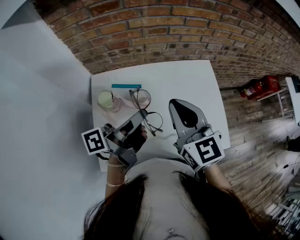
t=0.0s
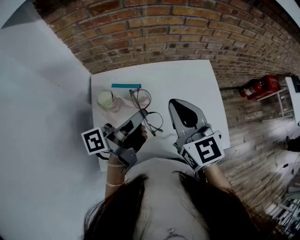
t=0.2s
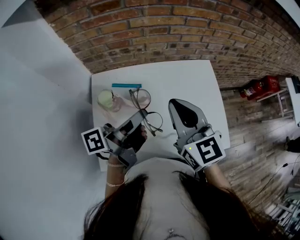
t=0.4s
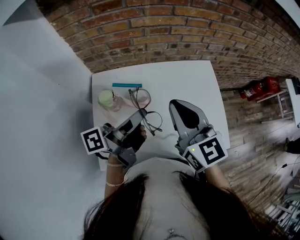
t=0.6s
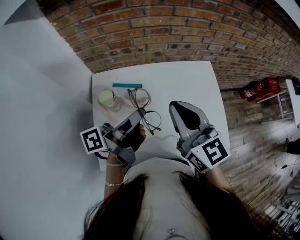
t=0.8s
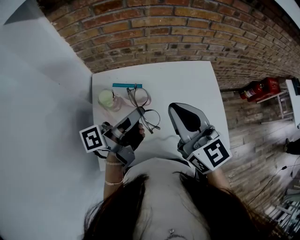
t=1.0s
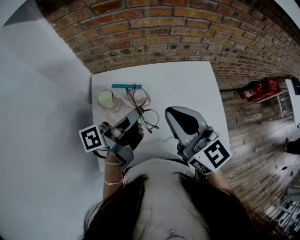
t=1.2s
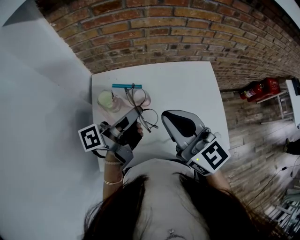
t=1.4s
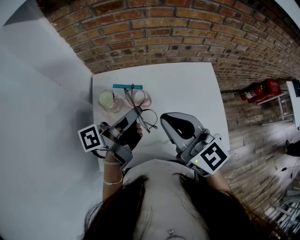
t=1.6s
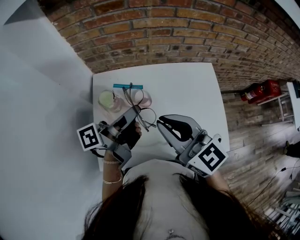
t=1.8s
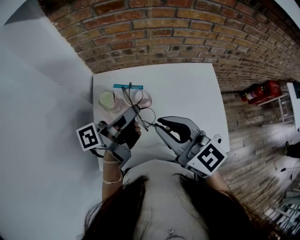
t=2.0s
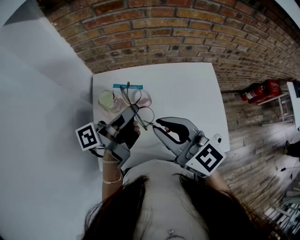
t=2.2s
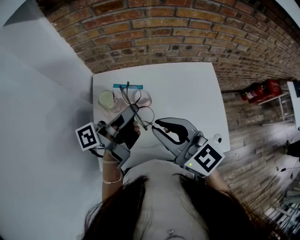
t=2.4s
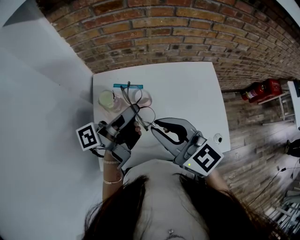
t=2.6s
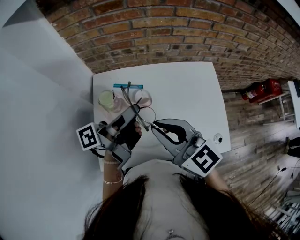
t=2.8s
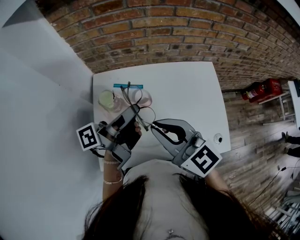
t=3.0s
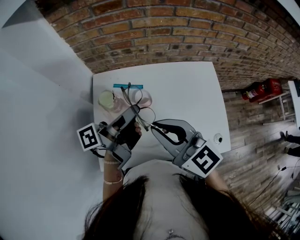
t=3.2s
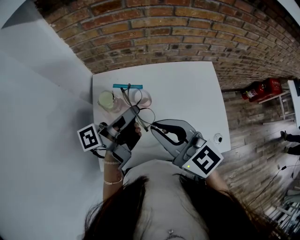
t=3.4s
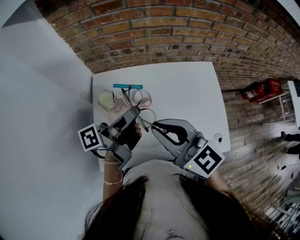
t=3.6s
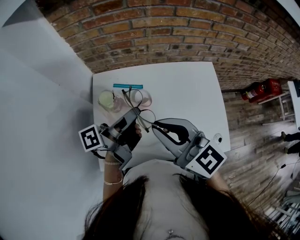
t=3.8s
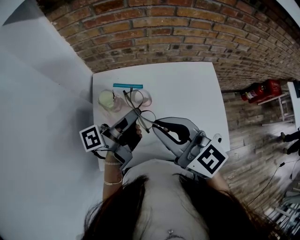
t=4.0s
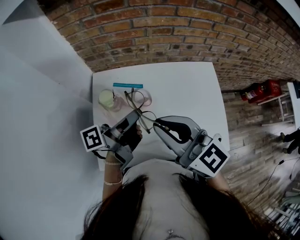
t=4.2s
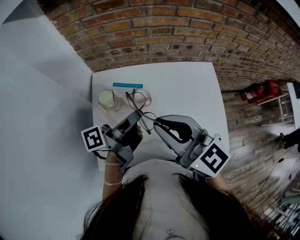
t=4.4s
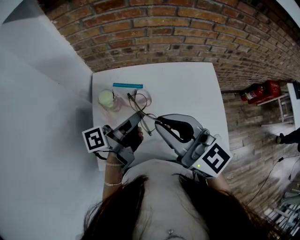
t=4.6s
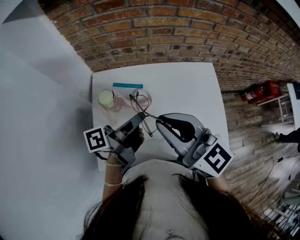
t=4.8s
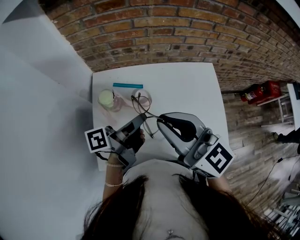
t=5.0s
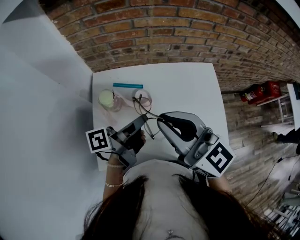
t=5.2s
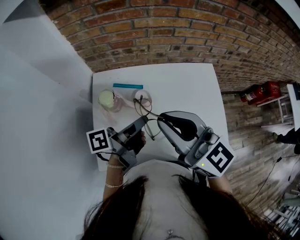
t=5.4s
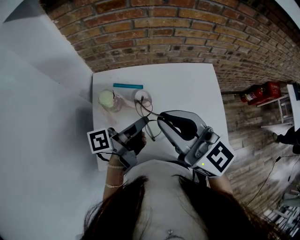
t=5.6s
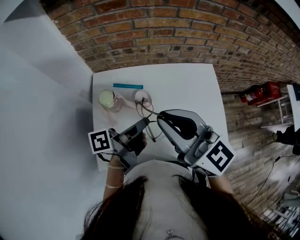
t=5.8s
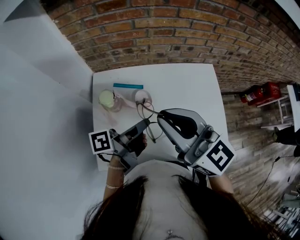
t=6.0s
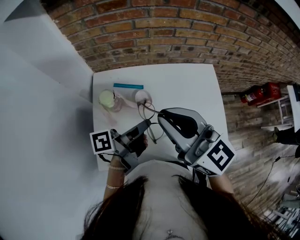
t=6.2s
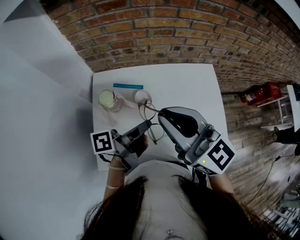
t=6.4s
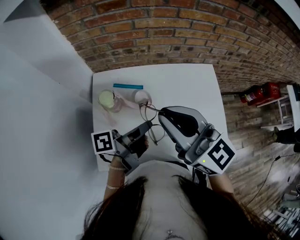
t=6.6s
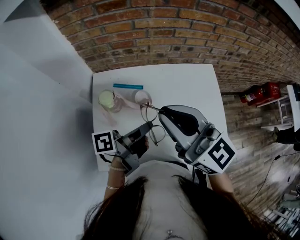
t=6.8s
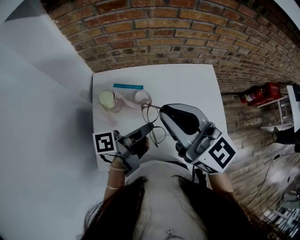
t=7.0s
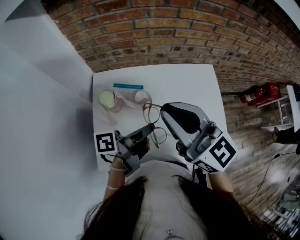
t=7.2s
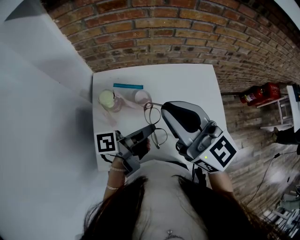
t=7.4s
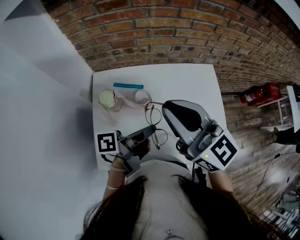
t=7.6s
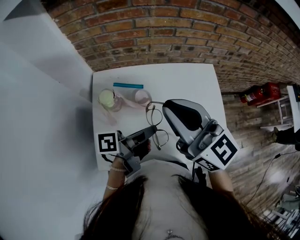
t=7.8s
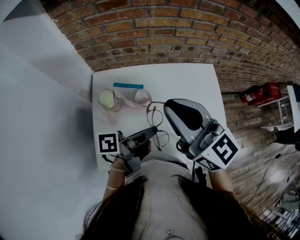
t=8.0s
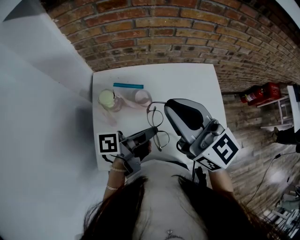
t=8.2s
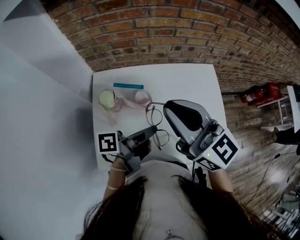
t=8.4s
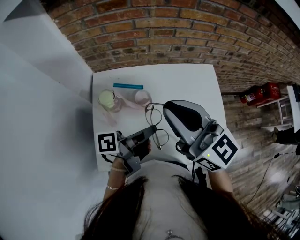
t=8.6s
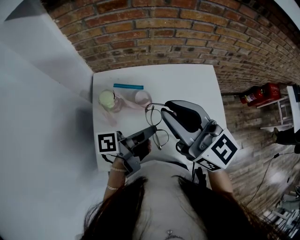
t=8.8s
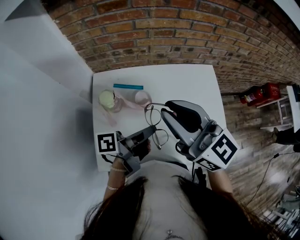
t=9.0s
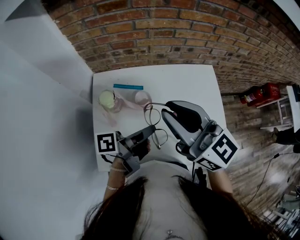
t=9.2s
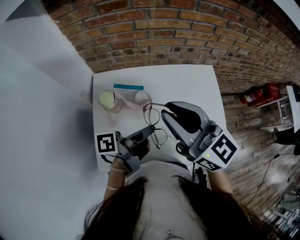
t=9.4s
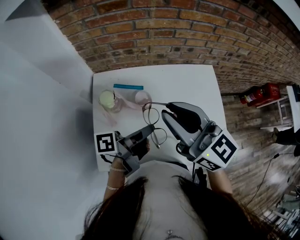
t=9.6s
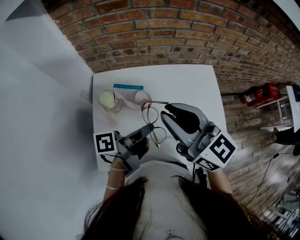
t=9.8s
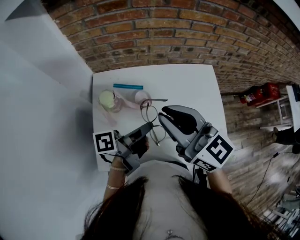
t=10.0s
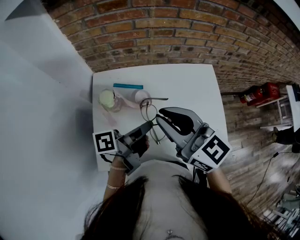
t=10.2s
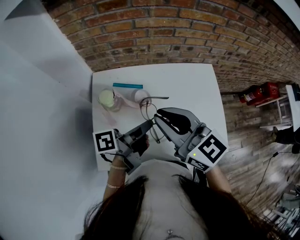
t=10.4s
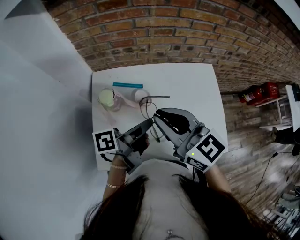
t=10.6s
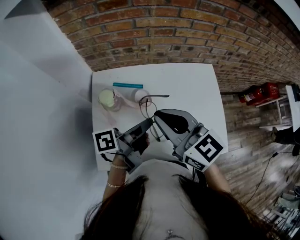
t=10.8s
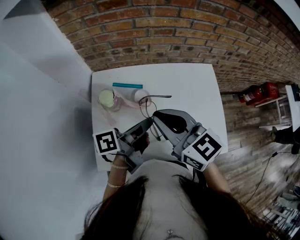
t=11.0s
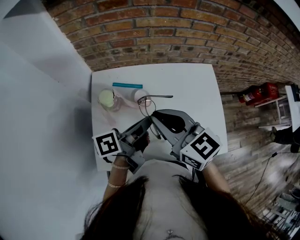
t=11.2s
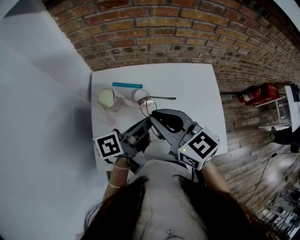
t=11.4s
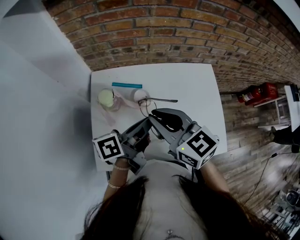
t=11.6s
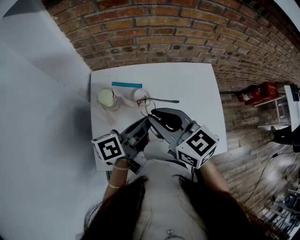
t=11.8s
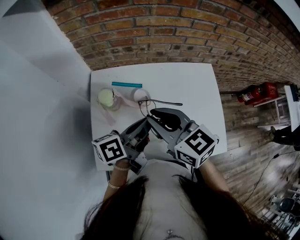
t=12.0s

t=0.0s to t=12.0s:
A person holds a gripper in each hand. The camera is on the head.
t=0.0s to t=1.6s: The right gripper ends up approximately 5 cm from where it was, and changes its angle by approximately 20 degrees.
t=9.0s to t=10.4s: The right gripper moves about 5 cm.
t=10.4s to t=12.0s: The right gripper shifts approximately 5 cm downward.

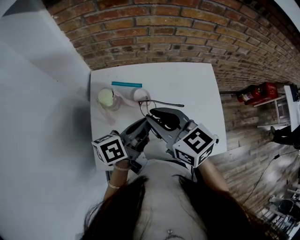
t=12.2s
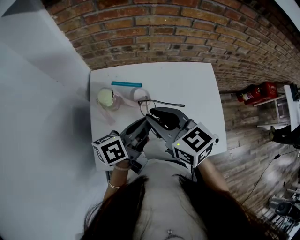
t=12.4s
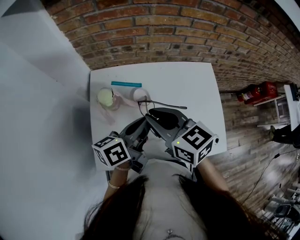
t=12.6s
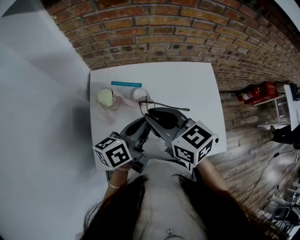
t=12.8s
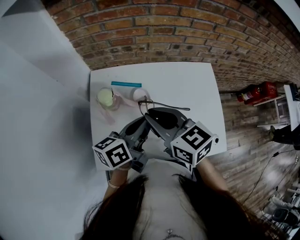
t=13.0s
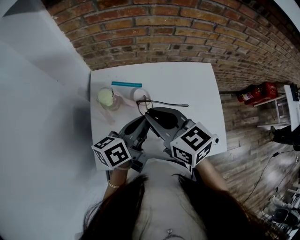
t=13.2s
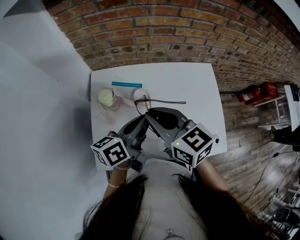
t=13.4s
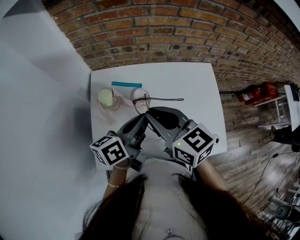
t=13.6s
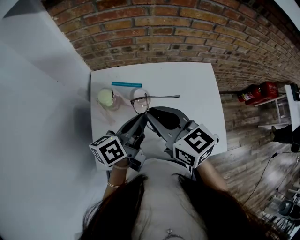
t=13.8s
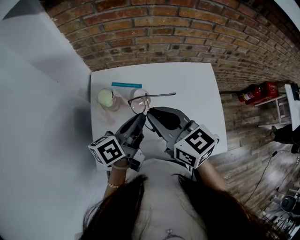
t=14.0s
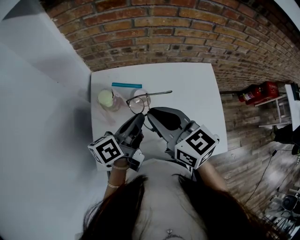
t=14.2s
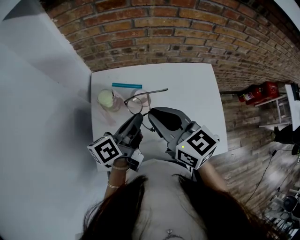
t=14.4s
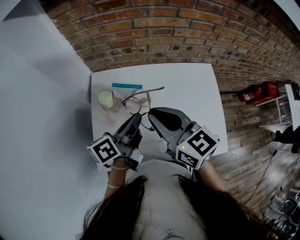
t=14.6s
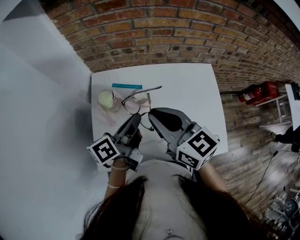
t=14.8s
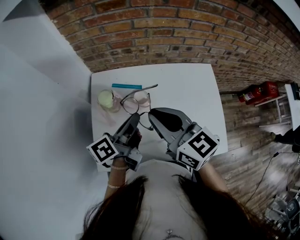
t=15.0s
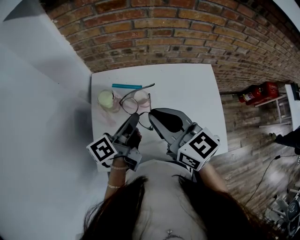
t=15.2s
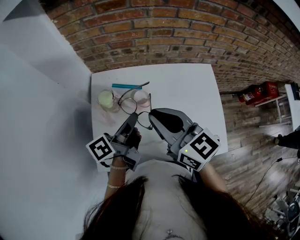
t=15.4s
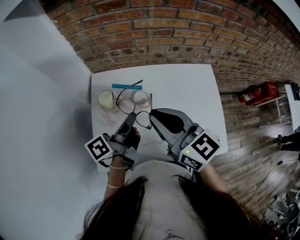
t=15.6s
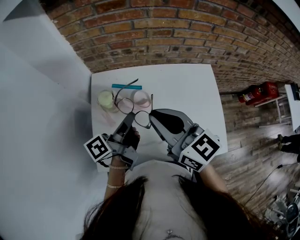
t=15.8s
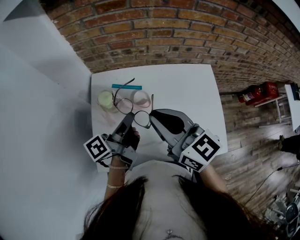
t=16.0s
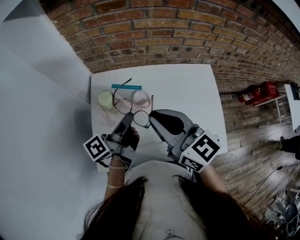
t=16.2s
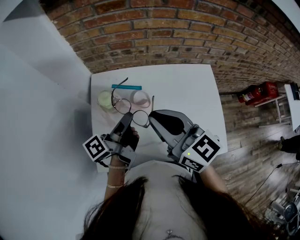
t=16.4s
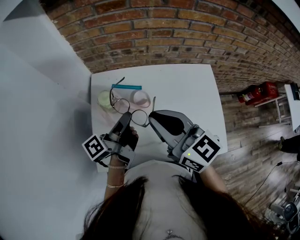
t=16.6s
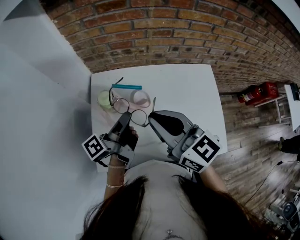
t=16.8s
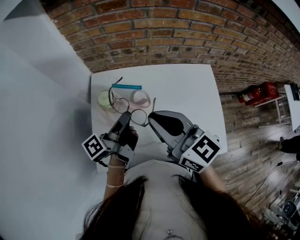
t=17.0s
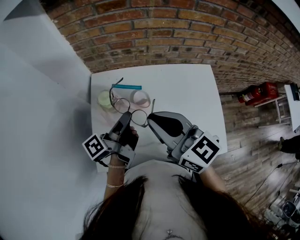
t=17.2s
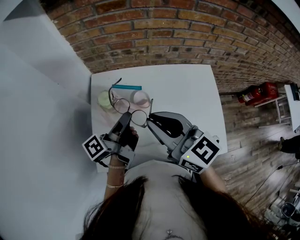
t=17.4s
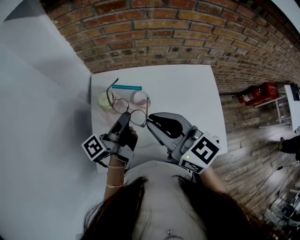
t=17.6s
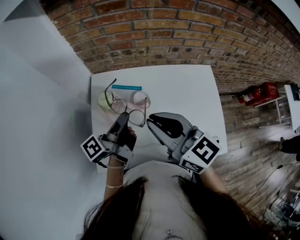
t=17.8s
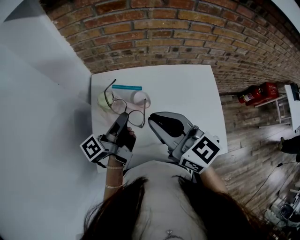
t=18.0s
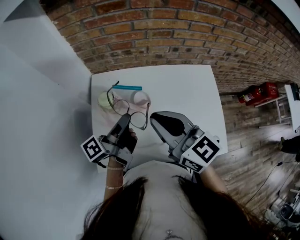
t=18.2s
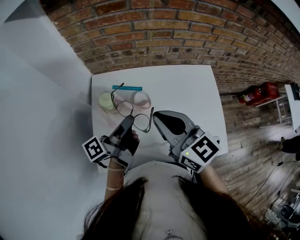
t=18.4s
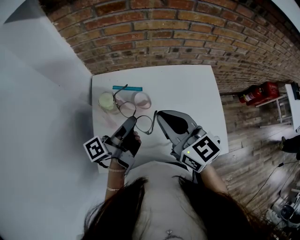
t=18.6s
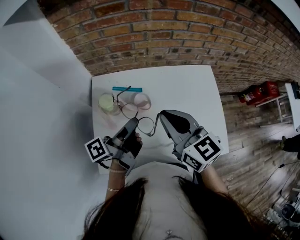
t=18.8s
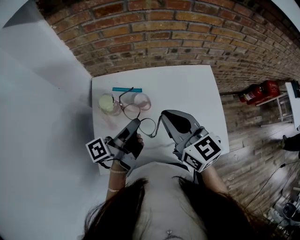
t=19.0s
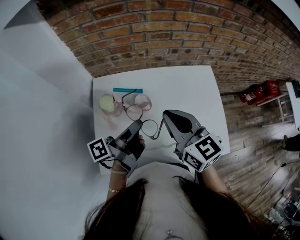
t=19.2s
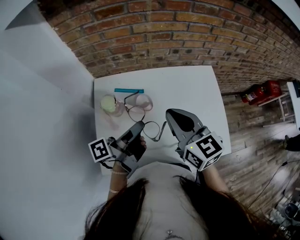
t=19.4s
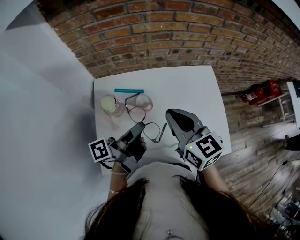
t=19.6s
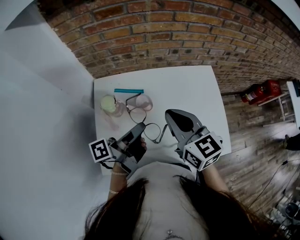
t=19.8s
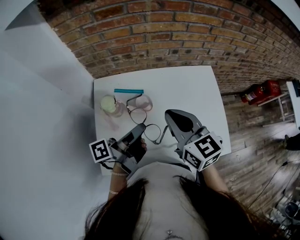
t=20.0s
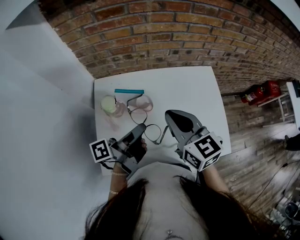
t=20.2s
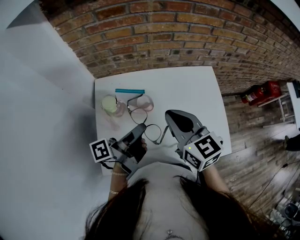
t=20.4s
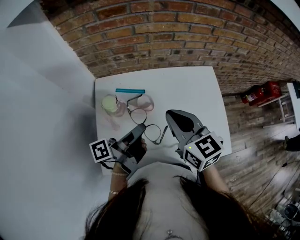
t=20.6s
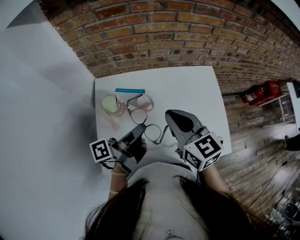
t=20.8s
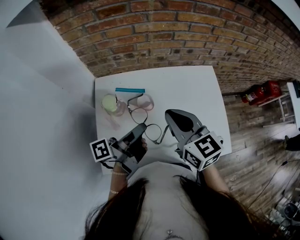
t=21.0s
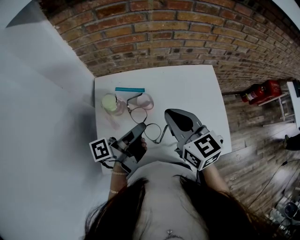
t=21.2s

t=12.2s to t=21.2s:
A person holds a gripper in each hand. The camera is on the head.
t=18.2s to t=19.8s: The right gripper moves approximately 5 cm.

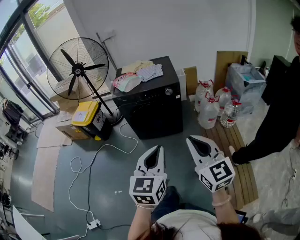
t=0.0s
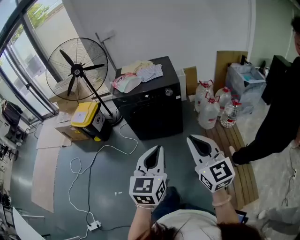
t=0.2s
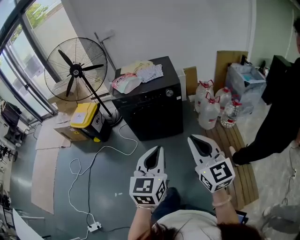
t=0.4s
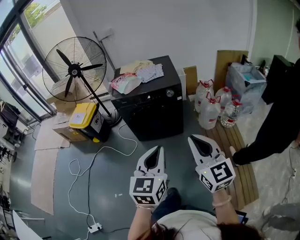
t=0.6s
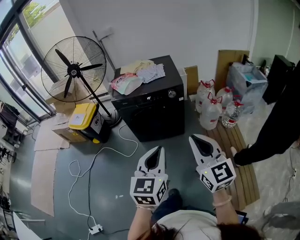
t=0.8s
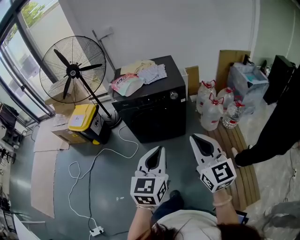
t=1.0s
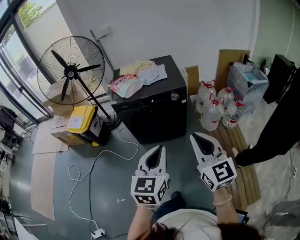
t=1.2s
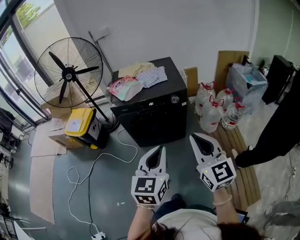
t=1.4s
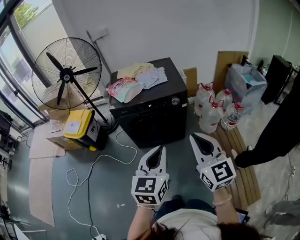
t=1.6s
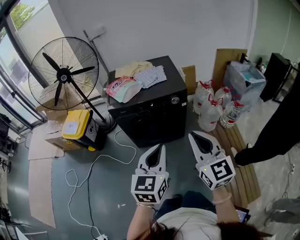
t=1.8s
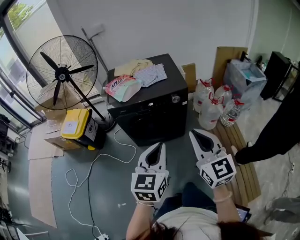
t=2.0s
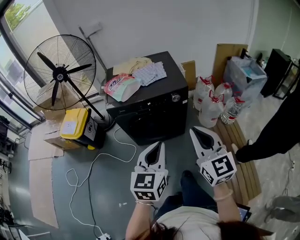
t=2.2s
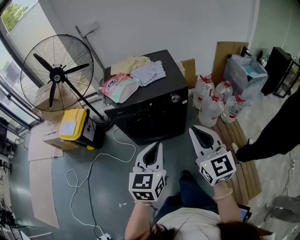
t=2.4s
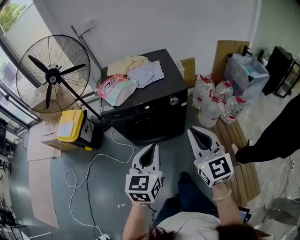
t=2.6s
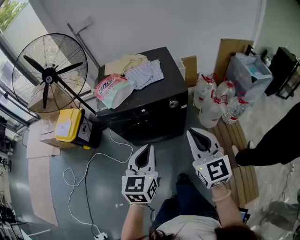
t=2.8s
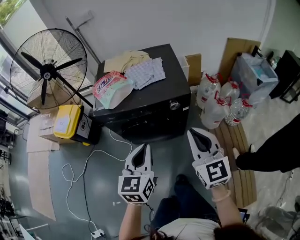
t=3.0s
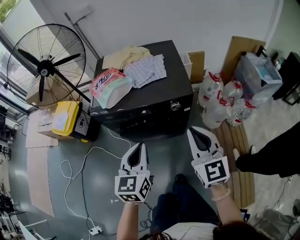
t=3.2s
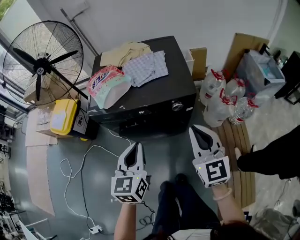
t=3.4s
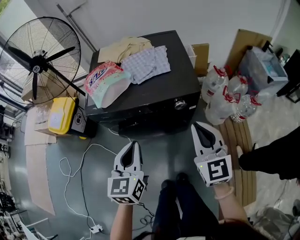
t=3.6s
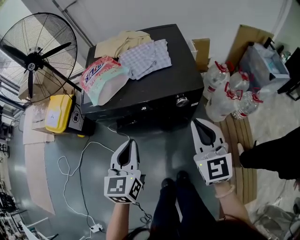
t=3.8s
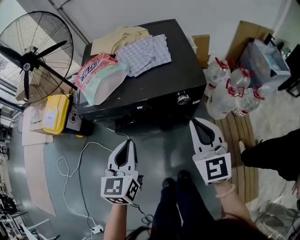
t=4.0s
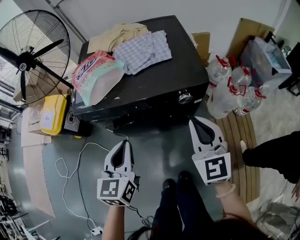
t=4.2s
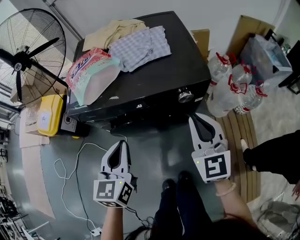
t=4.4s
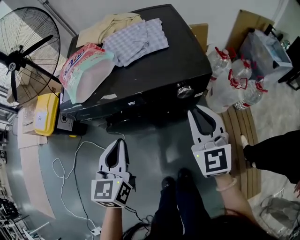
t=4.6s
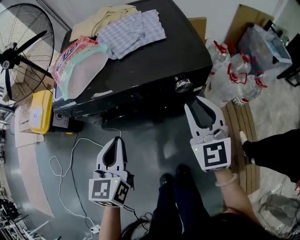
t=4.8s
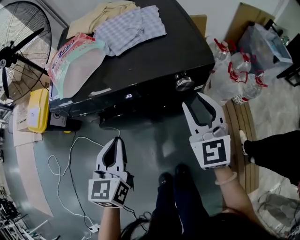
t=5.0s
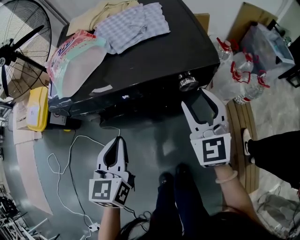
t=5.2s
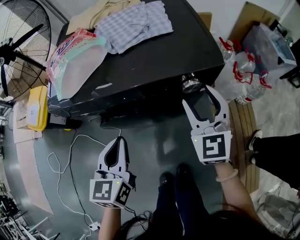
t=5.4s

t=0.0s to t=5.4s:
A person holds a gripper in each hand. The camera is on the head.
t=0.0s to t=1.4s: Both grippers move forward, roughly 15 cm.
t=1.4s to t=2.8s: The grippers both shift forward by some 20 cm.
t=2.8s to t=4.0s: The left gripper is displaced forward, downward and to the left by some 20 cm, while the right gripper is displaced forward and downward by some 20 cm.
t=4.0s to t=5.4s: The right gripper is displaced downward and forward by approximately 15 cm, and opens its fingers, while the left gripper heads downward, covering roughly 10 cm.
